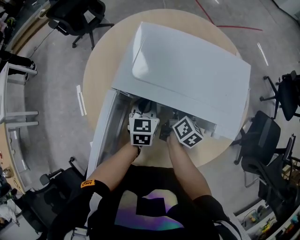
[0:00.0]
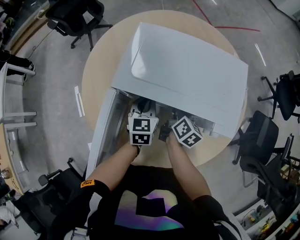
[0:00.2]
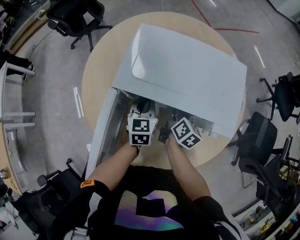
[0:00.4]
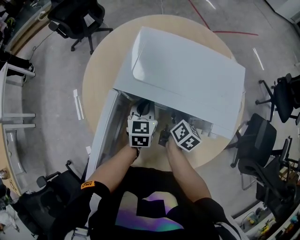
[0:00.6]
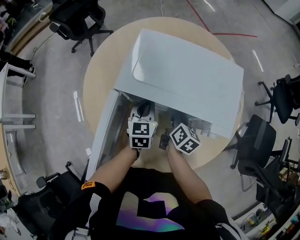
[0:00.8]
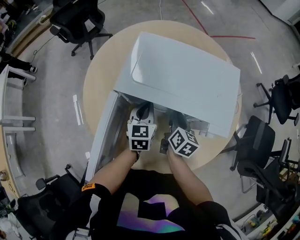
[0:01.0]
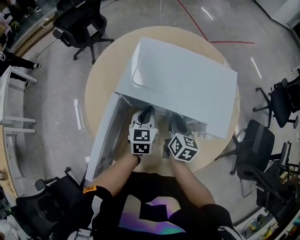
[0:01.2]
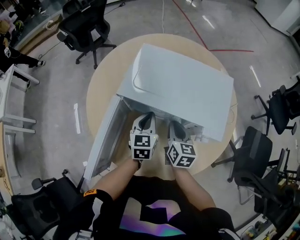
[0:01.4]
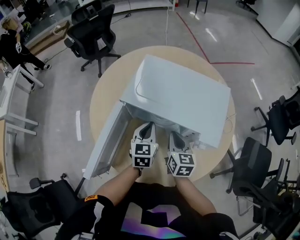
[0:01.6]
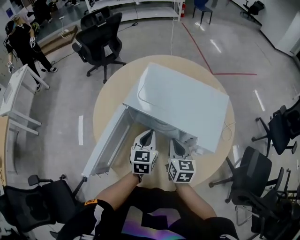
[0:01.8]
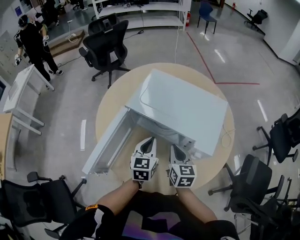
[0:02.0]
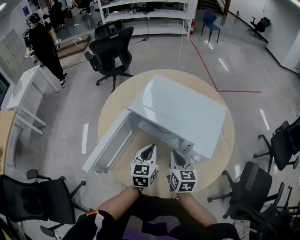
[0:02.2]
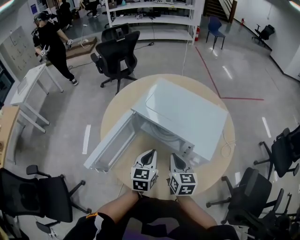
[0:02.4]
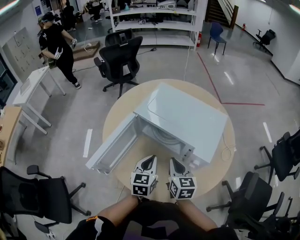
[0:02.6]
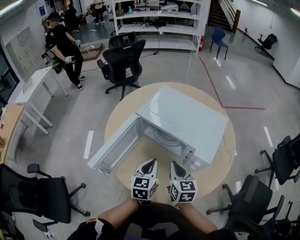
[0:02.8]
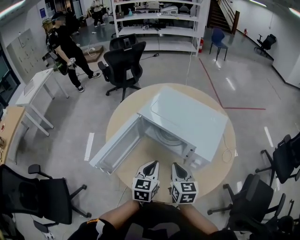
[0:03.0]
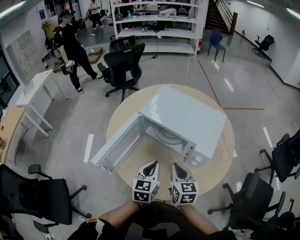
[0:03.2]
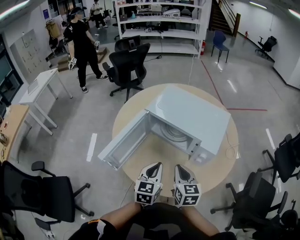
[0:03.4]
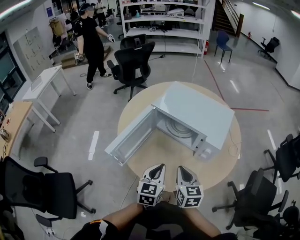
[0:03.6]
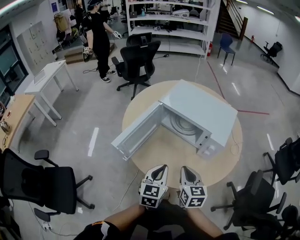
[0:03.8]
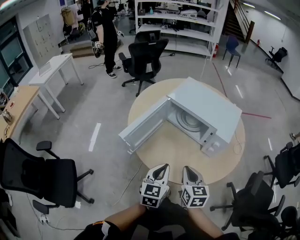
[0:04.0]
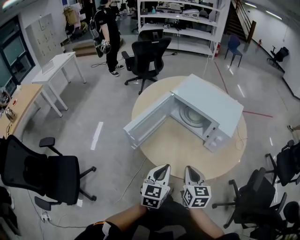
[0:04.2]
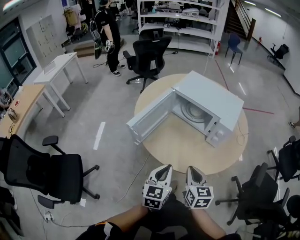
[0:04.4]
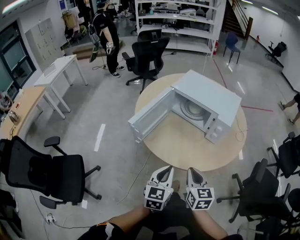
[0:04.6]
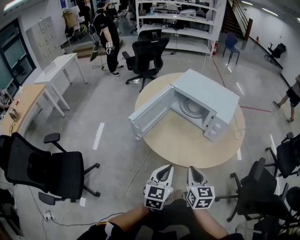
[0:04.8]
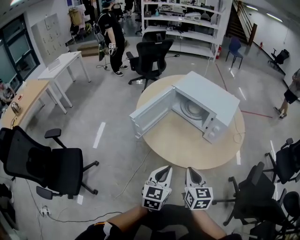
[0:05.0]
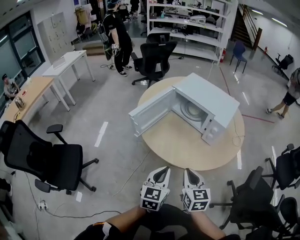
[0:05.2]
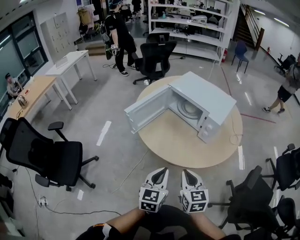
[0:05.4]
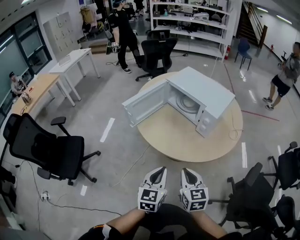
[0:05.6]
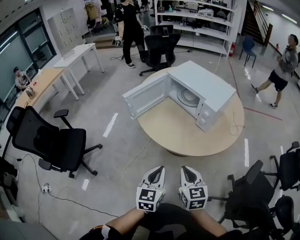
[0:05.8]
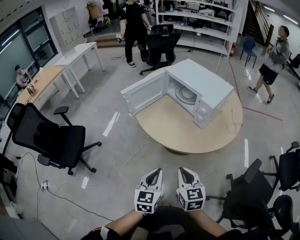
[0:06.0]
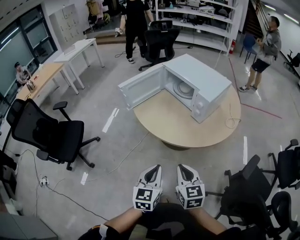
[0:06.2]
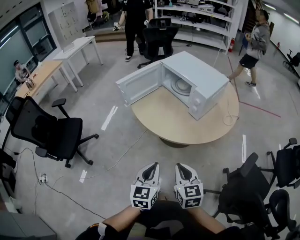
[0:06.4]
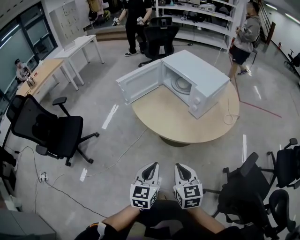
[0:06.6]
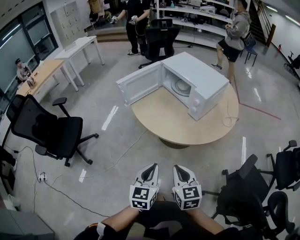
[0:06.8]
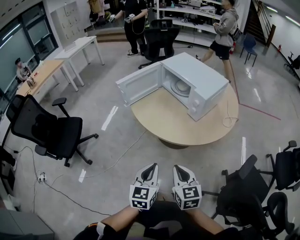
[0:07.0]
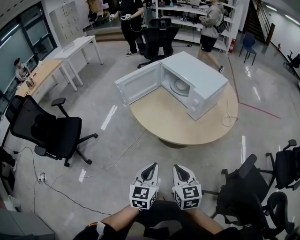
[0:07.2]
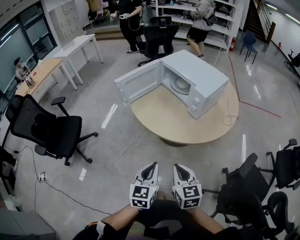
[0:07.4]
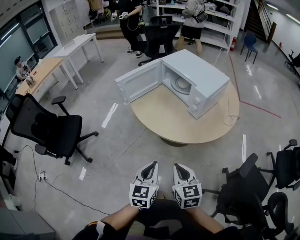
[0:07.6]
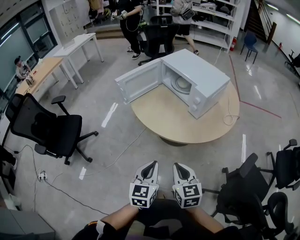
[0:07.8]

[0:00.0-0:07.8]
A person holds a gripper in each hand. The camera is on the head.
0:00.0 to 0:01.6: The right gripper heads backward and upward, covering some 10 cm, and swivels roughly 40 degrees; the left gripper is displaced backward by approximately 5 cm.
0:01.6 to 0:03.2: The left gripper is displaced backward by some 20 cm. The right gripper travels backward and upward by approximately 15 cm.
0:03.2 to 0:04.6: Both grippers move backward, approximately 25 cm.
0:04.6 to 0:06.2: The grippers both shift backward and to the right by about 25 cm. The right gripper changes its angle by about 20 degrees.
0:06.2 to 0:07.8: The grippers move only a little.

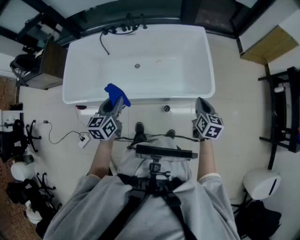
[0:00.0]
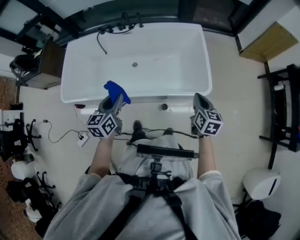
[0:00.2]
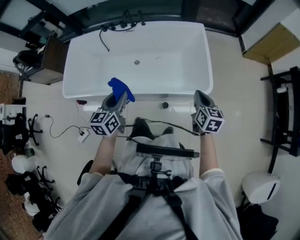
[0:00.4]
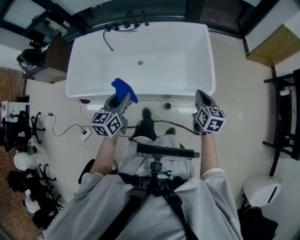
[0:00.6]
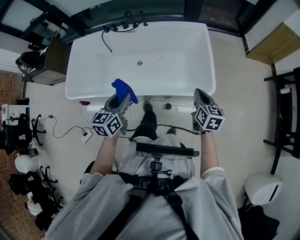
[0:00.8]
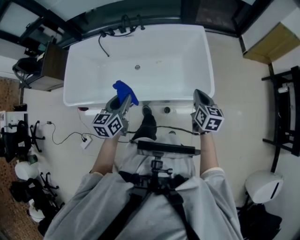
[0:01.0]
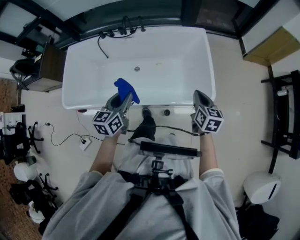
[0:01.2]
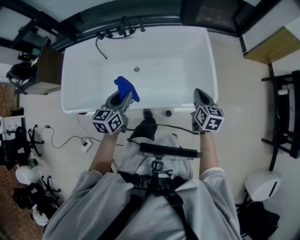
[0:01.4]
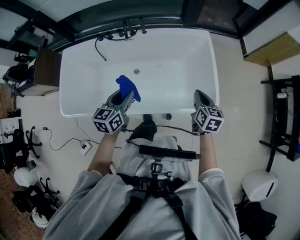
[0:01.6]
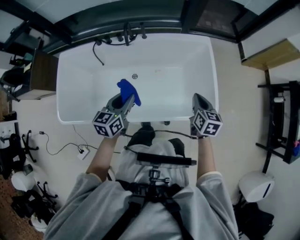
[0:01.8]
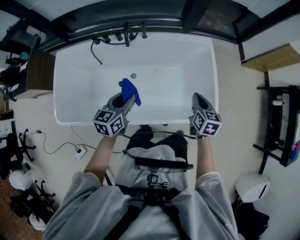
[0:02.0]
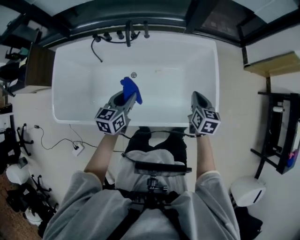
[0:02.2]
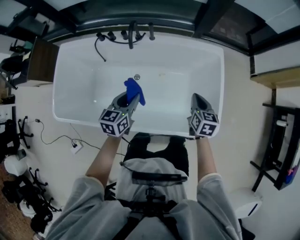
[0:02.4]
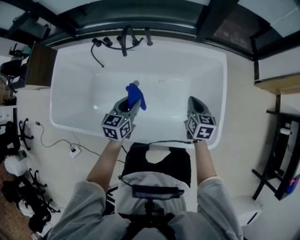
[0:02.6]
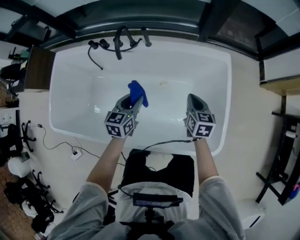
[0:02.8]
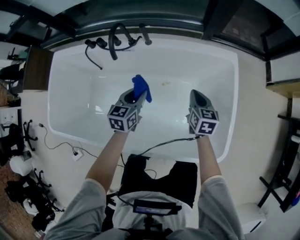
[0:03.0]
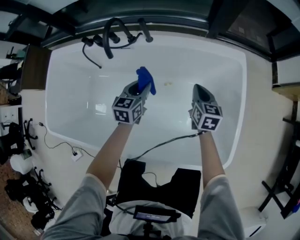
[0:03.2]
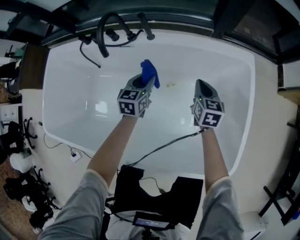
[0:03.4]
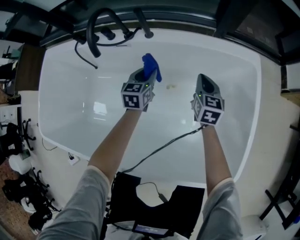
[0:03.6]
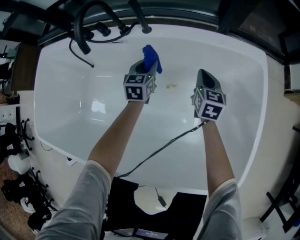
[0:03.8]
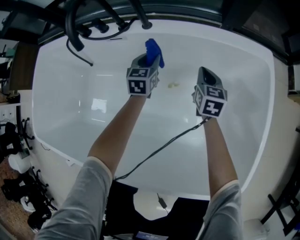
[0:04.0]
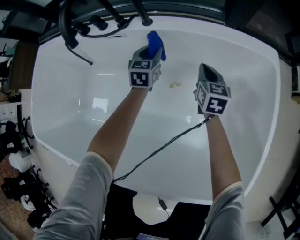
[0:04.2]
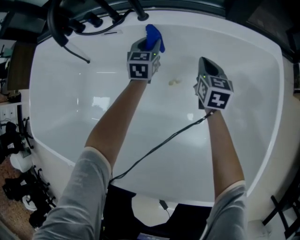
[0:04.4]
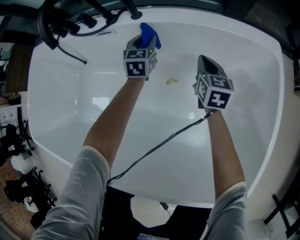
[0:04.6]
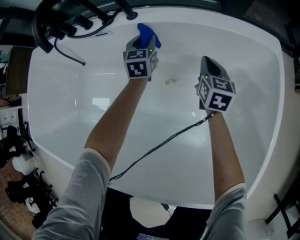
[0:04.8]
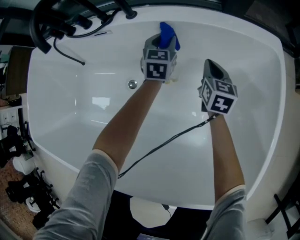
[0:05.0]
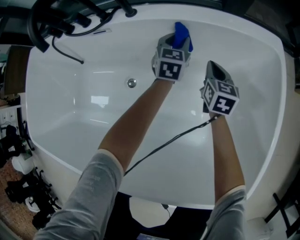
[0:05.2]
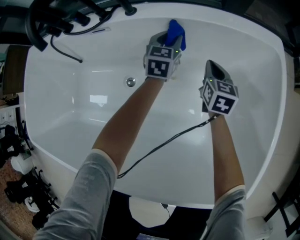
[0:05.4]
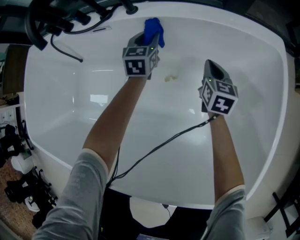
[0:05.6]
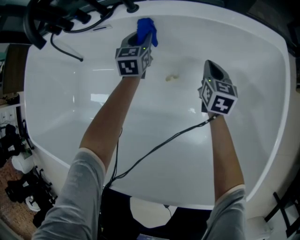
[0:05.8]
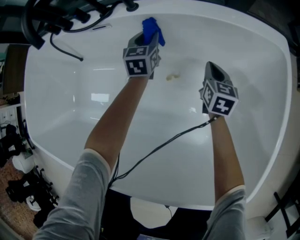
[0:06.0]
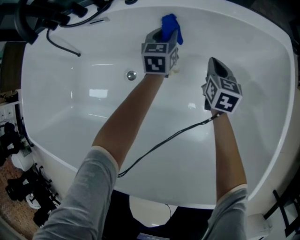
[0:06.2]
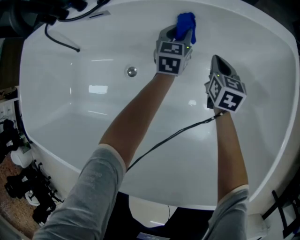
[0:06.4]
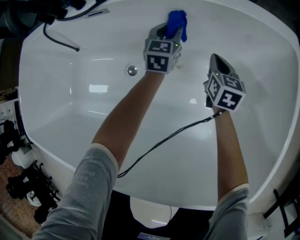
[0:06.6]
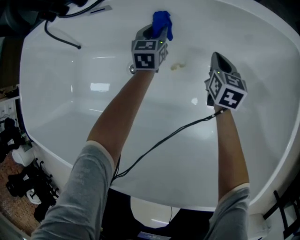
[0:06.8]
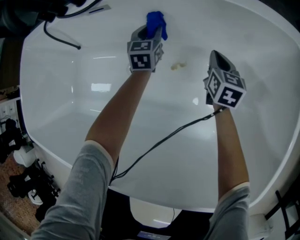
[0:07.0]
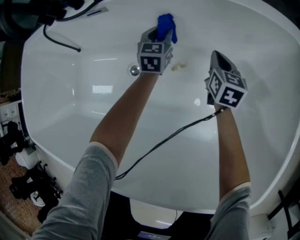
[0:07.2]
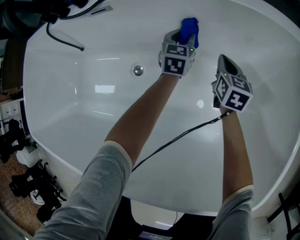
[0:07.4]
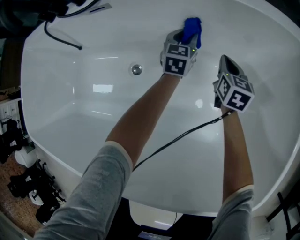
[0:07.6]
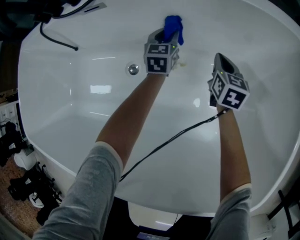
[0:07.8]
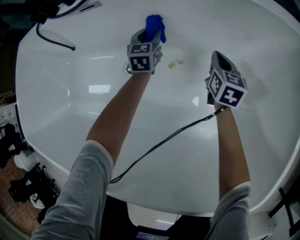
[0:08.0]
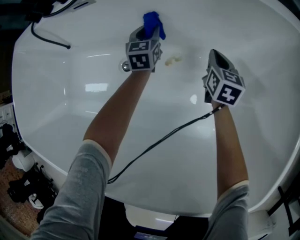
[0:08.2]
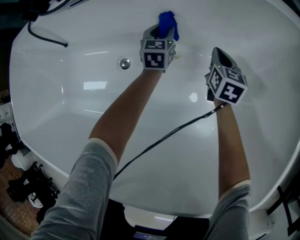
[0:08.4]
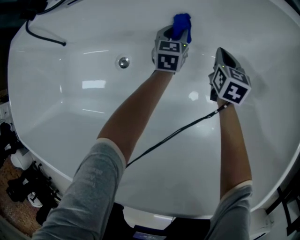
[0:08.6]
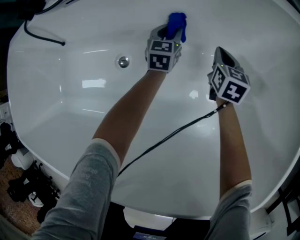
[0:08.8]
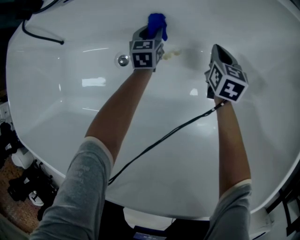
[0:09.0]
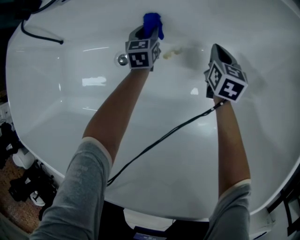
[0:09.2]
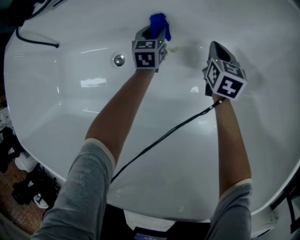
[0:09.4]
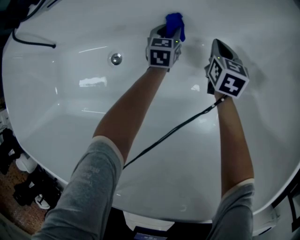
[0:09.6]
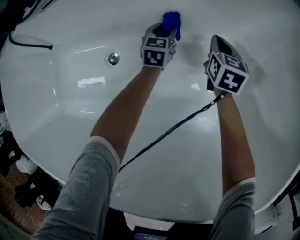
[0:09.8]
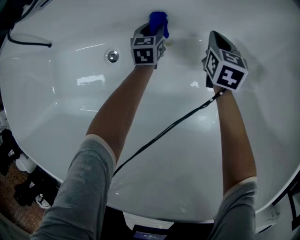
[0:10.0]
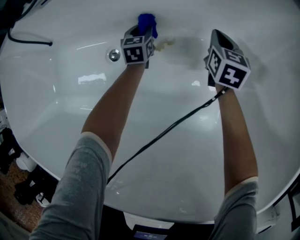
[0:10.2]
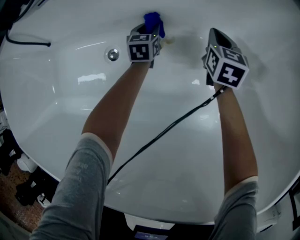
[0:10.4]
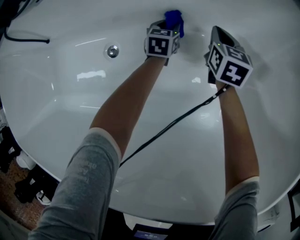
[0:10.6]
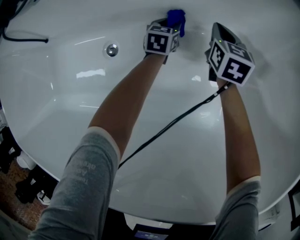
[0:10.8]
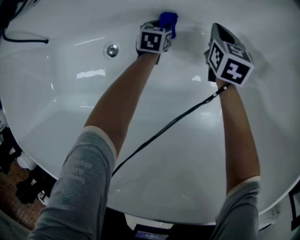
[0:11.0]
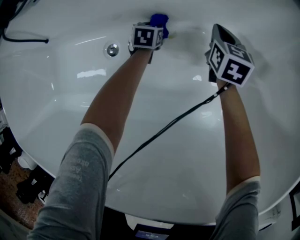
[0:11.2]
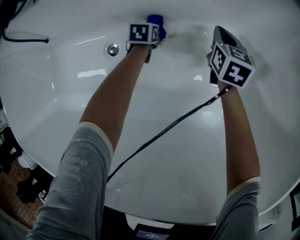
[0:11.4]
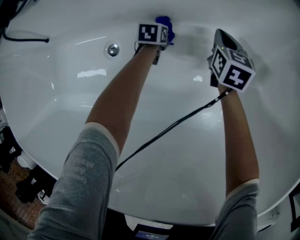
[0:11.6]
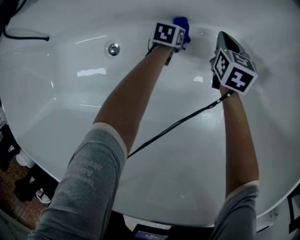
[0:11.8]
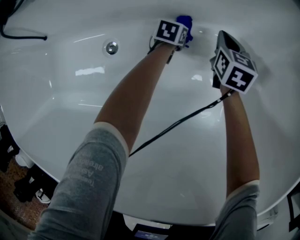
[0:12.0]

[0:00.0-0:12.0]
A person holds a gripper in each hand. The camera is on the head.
0:00.0 to 0:01.6: Both grippers move forward, approximately 15 cm.
0:01.6 to 0:03.0: The two grippers go approximately 35 cm forward and downward.
0:03.0 to 0:04.4: The left gripper heads forward and downward, covering roughly 35 cm; the right gripper shifts roughly 25 cm downward and forward.
0:04.4 to 0:06.0: The left gripper travels to the right and back again, some 15 cm each way. The right gripper heads downward, covering about 5 cm.
0:06.0 to 0:07.6: The right gripper travels downward by approximately 5 cm; the left gripper goes left and right, some 15 cm each way, reversing 2 times.
0:07.6 to 0:09.0: The left gripper swings left and right, some 10 cm each way, with 2 reversals, while the right gripper moves downward, approximately 5 cm.
0:09.0 to 0:10.4: The left gripper heads downward, covering about 10 cm, and goes to the right and returns, about 10 cm each way.
0:10.4 to 0:12.0: The left gripper goes left and right, some 10 cm each way, reversing 2 times, and rotates roughly 30 degrees.

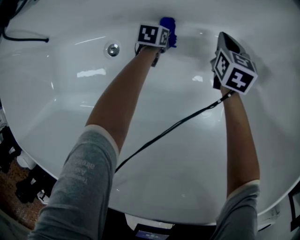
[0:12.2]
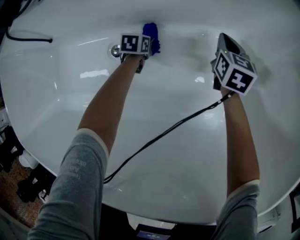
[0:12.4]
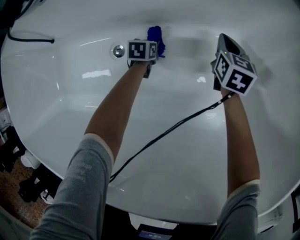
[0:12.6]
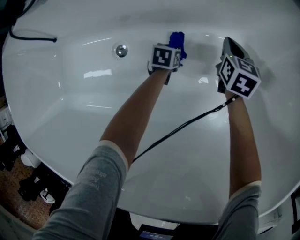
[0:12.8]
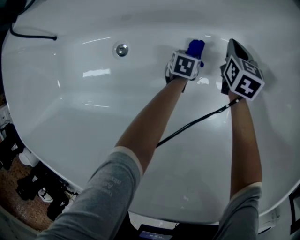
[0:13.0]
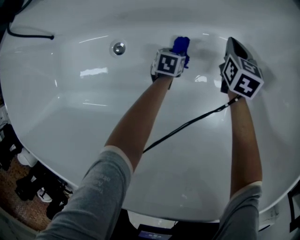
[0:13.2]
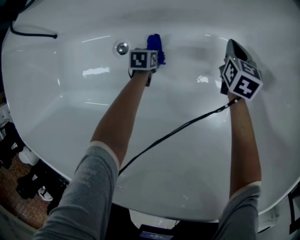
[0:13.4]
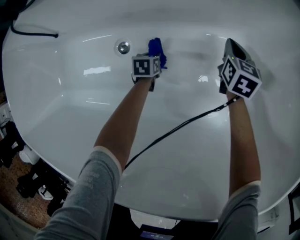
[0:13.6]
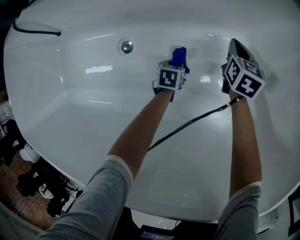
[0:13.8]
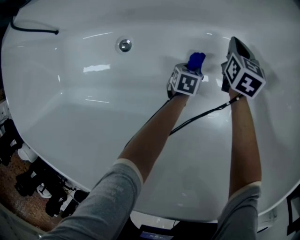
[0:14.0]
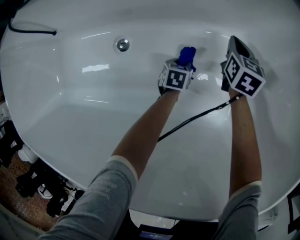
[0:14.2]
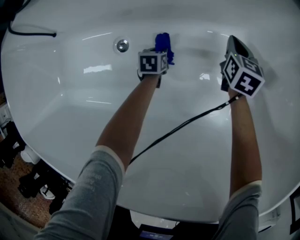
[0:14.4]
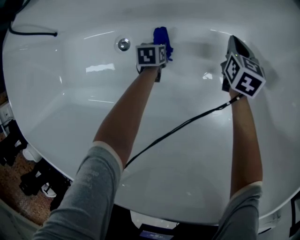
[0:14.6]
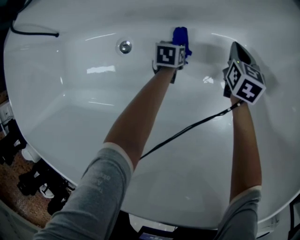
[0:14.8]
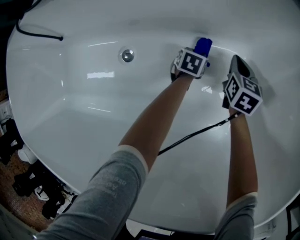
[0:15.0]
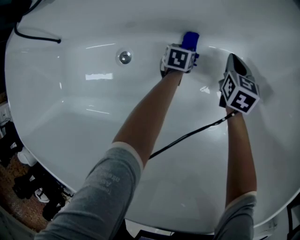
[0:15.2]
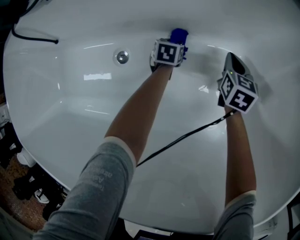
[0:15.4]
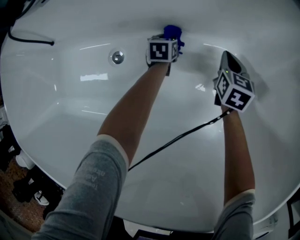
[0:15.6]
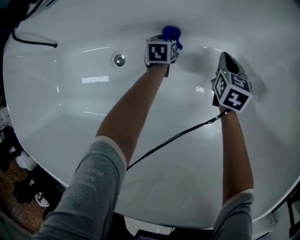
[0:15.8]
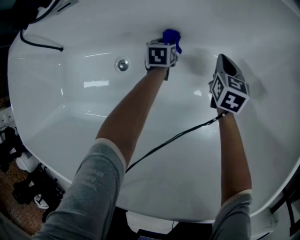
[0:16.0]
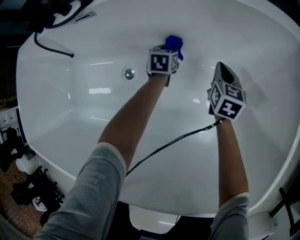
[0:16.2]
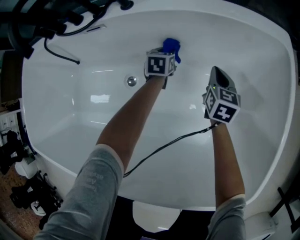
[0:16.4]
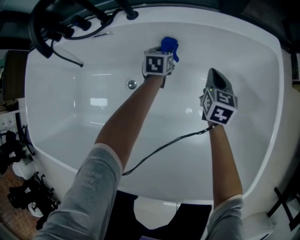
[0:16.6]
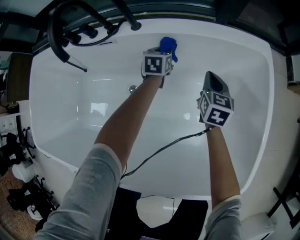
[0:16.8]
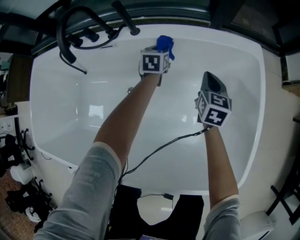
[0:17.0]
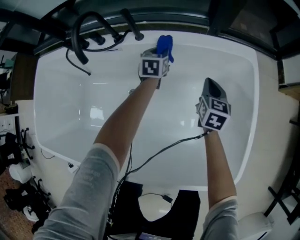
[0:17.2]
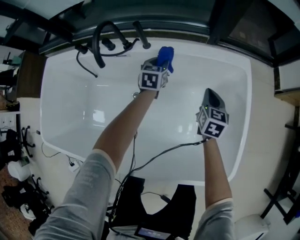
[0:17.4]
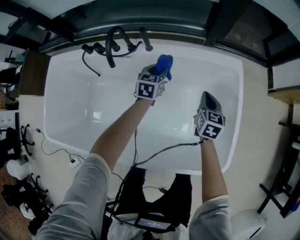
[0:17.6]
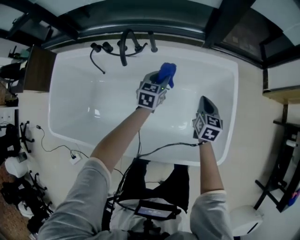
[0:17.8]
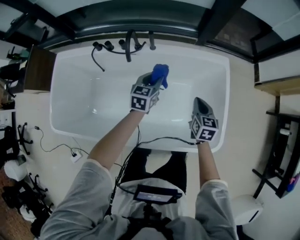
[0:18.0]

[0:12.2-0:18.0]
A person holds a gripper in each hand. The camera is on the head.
0:12.2 to 0:13.6: The left gripper moves left and right over about 20 cm, changing direction 2 times.
0:13.6 to 0:15.0: The left gripper swings left and right, roughly 15 cm each way, with 2 reversals.
0:15.0 to 0:16.6: Both grippers move upward, some 25 cm. The left gripper rotates some 20 degrees.
0:16.6 to 0:18.0: The two grippers go about 40 cm upward and backward.
